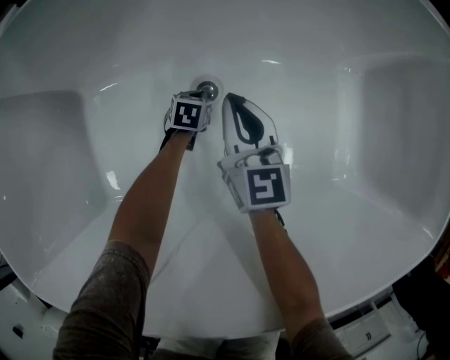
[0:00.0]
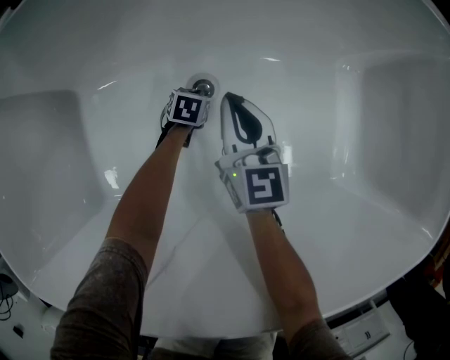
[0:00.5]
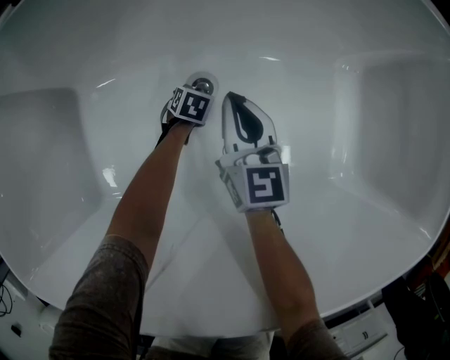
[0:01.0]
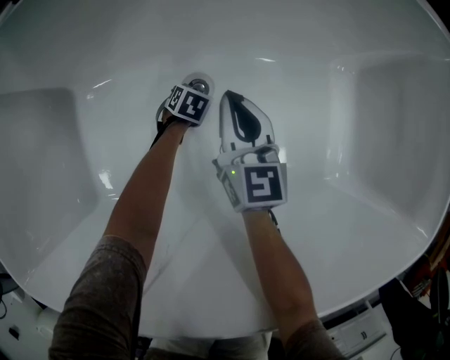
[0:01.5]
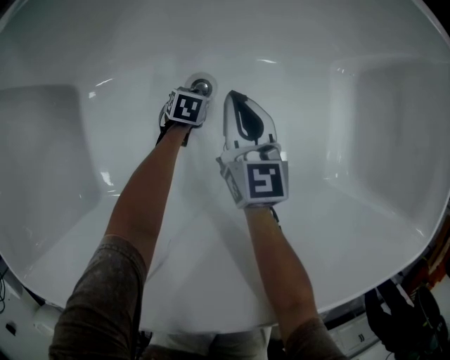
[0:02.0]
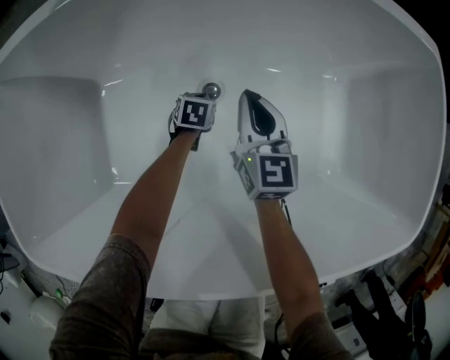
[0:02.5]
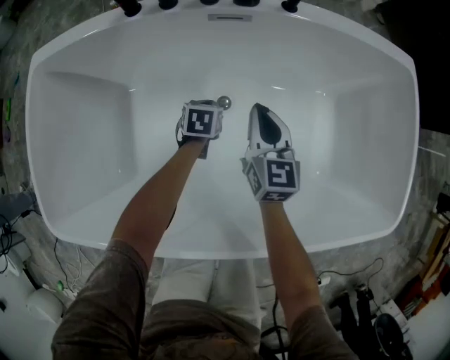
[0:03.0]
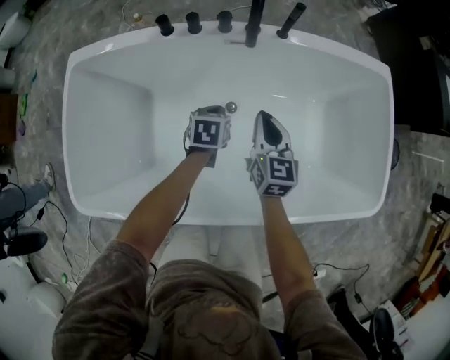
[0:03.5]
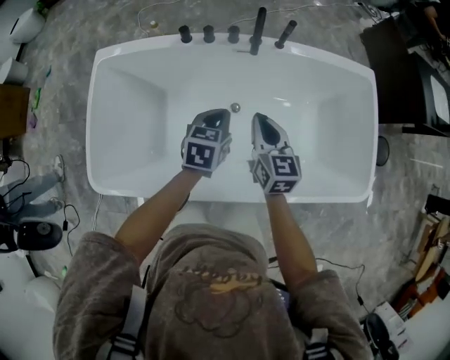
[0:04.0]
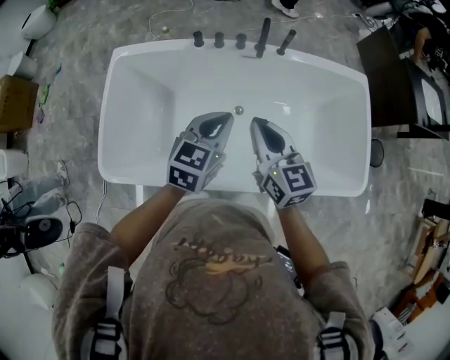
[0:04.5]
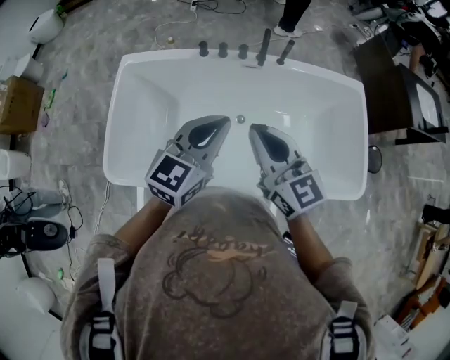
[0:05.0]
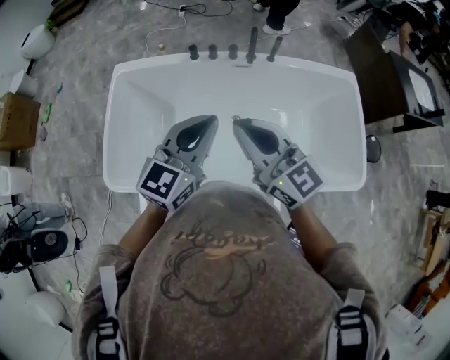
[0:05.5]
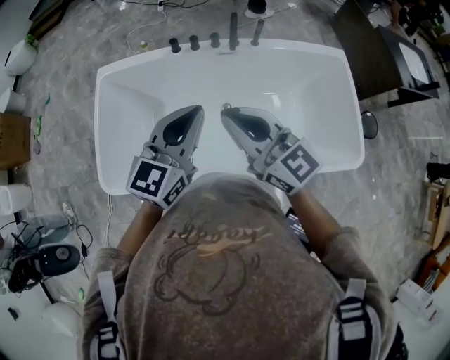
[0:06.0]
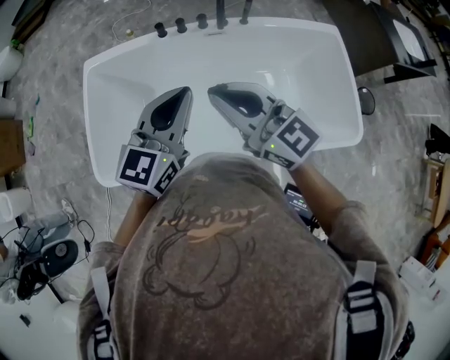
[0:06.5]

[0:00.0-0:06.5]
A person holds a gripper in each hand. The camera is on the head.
0:00.0 to 0:02.0: The grippers make only small movements.
0:02.0 to 0:04.5: The grippers both shift upward by about 70 cm. The left gripper tips its fingers upward by approximately 40 degrees.
0:04.5 to 0:06.5: Both grippers travel together upward, roughly 10 cm. The right gripper rotates some 30 degrees.

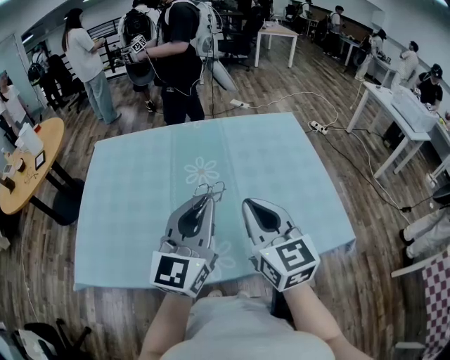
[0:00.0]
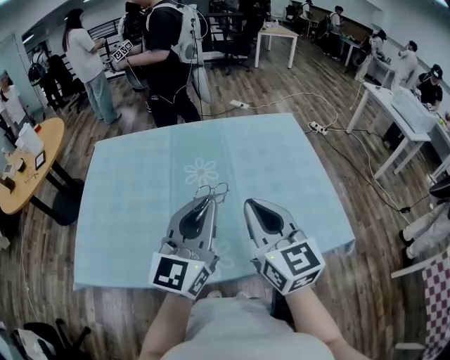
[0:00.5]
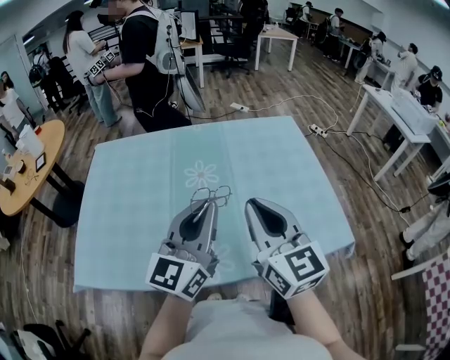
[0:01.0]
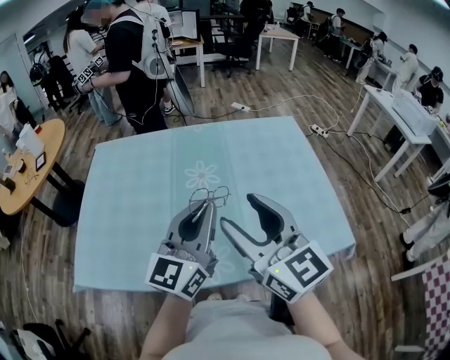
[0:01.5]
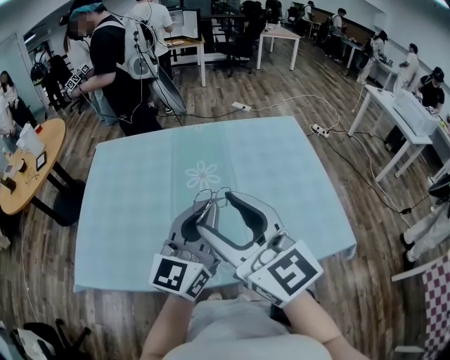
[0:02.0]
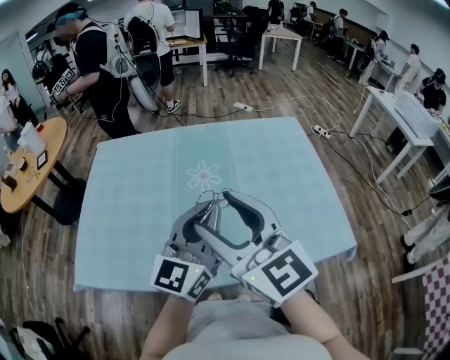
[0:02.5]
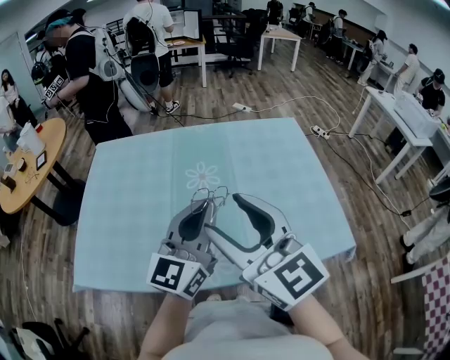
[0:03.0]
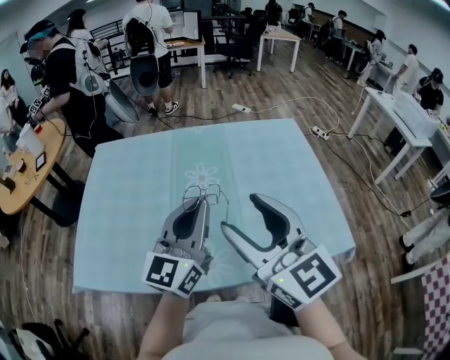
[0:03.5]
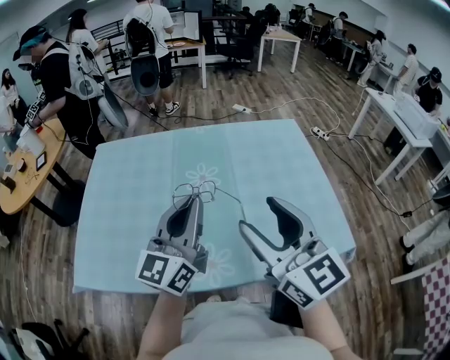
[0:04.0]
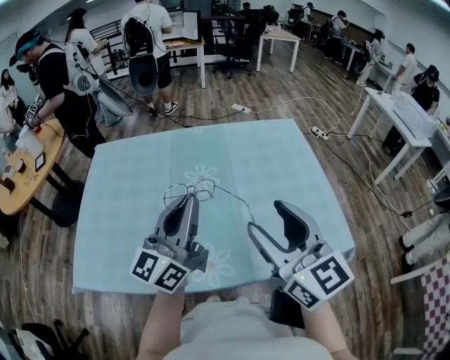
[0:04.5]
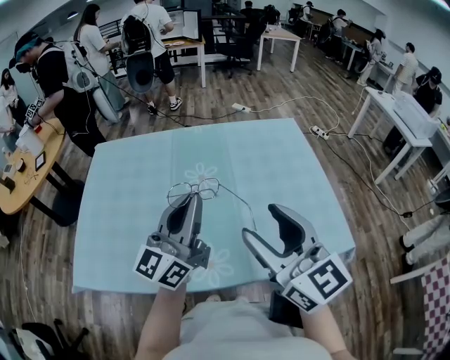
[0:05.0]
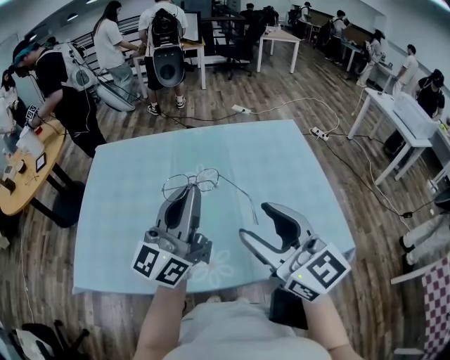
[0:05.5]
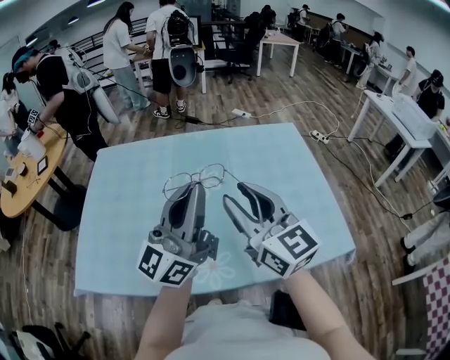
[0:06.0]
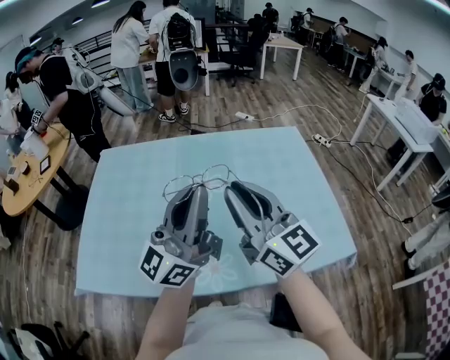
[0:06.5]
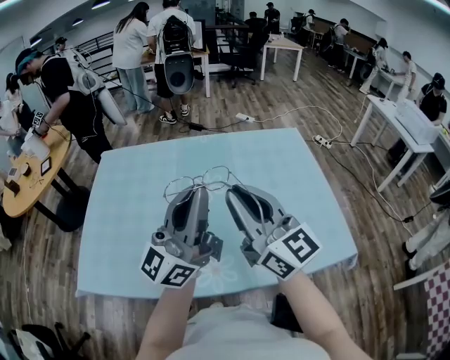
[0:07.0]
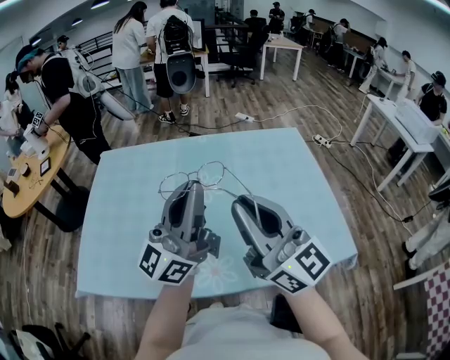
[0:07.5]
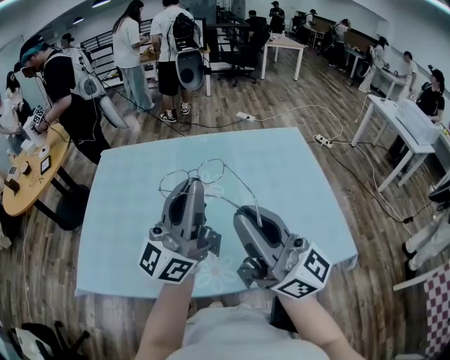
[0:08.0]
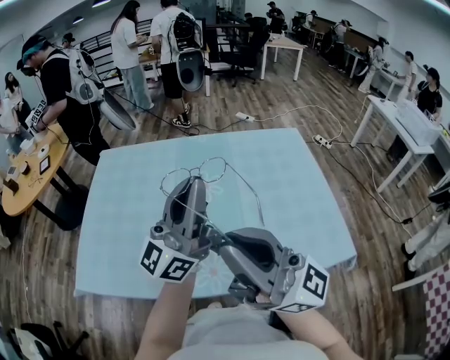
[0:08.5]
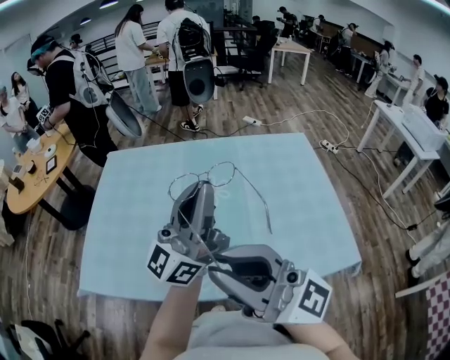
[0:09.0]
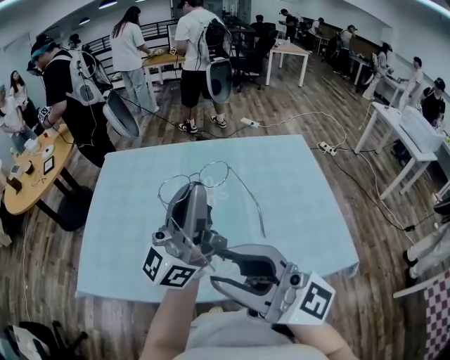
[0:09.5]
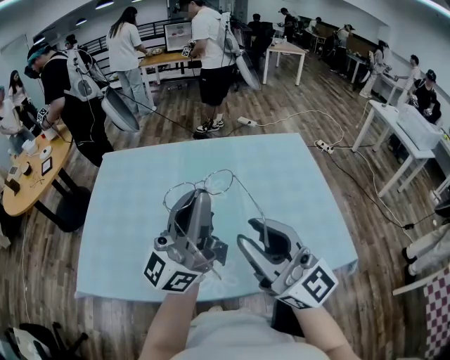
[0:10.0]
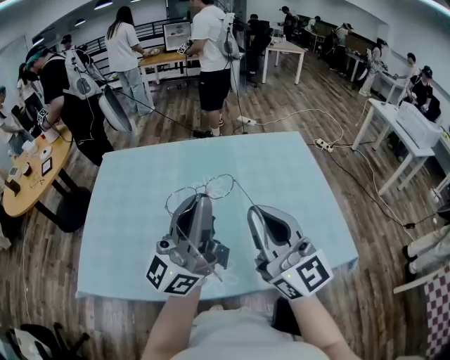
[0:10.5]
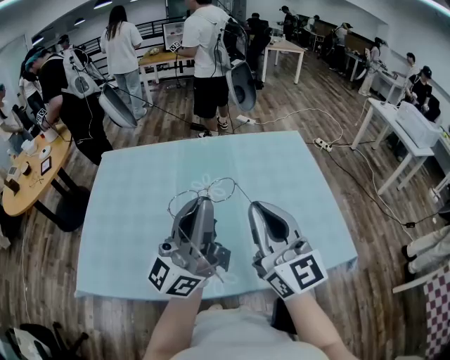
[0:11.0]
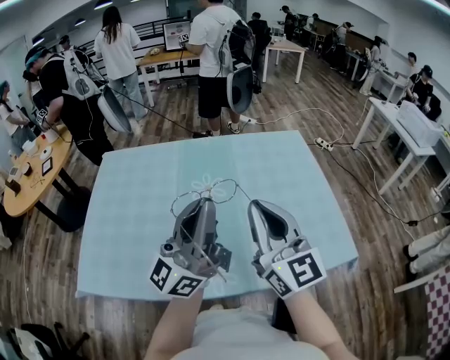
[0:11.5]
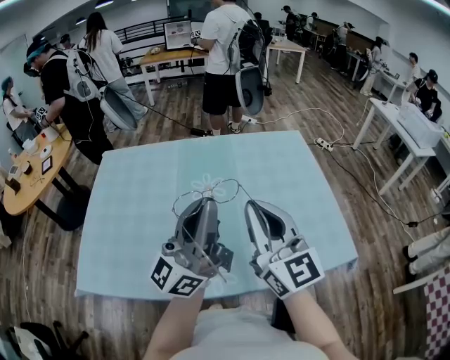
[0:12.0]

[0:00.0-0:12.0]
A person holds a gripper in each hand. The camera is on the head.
0:00.0 to 0:02.0: The right gripper moves upward and to the left, roughly 10 cm, swivels approximately 20 degrees, and opens up.
0:02.0 to 0:04.0: The right gripper heads to the right, covering about 10 cm.
0:04.0 to 0:06.0: The left gripper shifts approximately 5 cm upward, and turns by some 20 degrees. Meanwhile the right gripper travels forward by some 5 cm, and closes up.
0:06.0 to 0:08.0: The right gripper goes roughly 10 cm backward and upward, changes its angle by about 30 degrees, and closes its fingers.
0:08.0 to 0:10.0: The right gripper rotates approximately 20 degrees.
0:10.0 to 0:12.0: The right gripper is displaced forward by about 5 cm, rotates about 20 degrees, and closes.

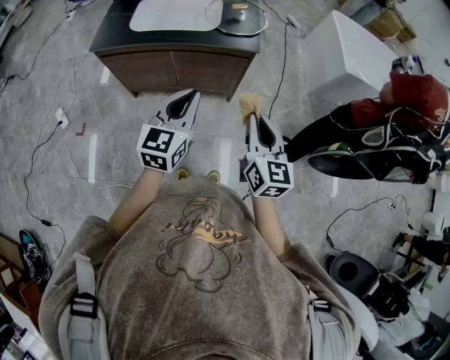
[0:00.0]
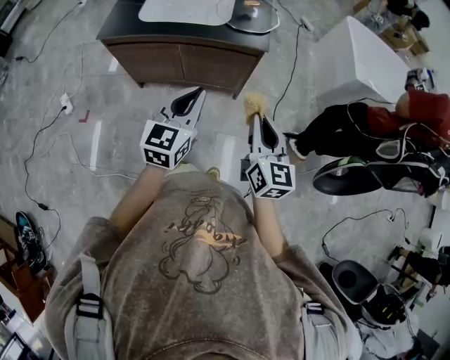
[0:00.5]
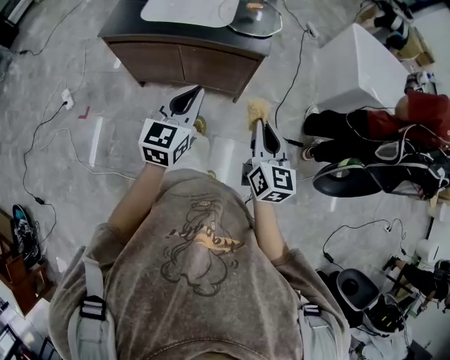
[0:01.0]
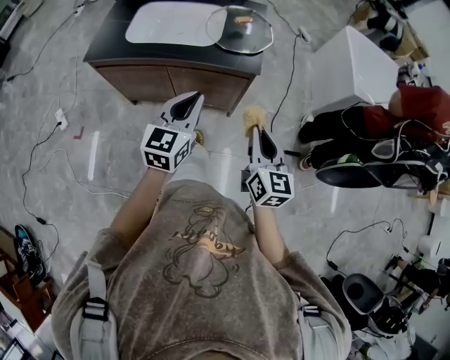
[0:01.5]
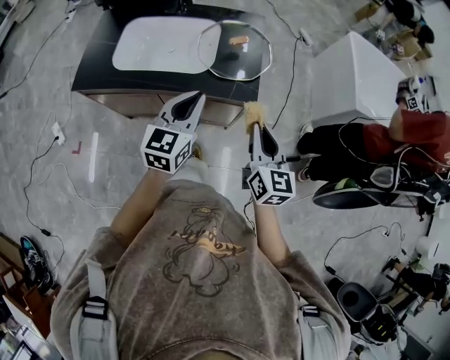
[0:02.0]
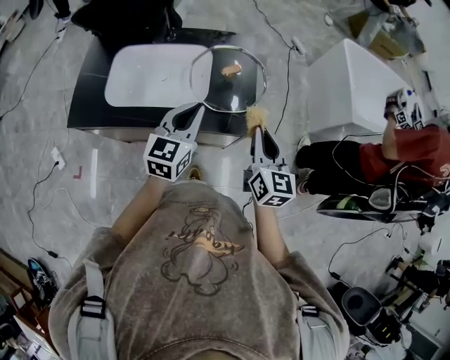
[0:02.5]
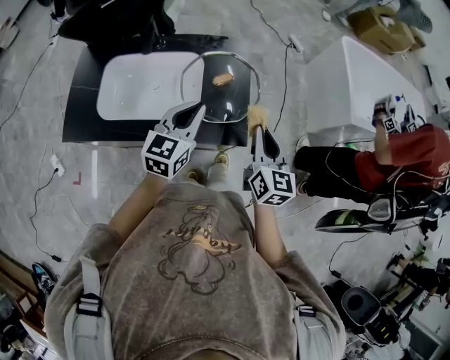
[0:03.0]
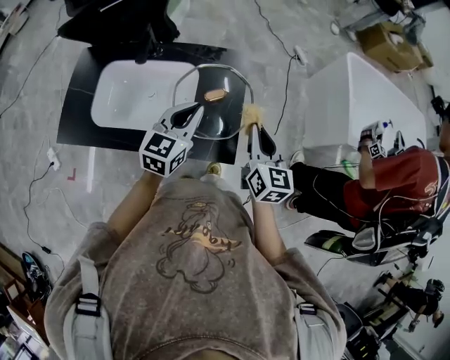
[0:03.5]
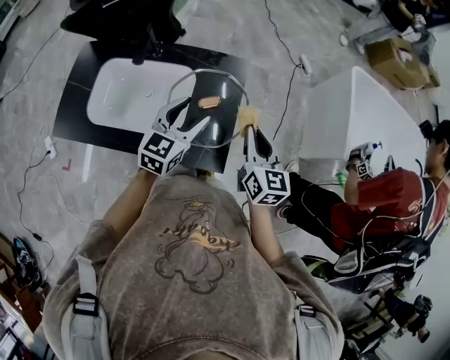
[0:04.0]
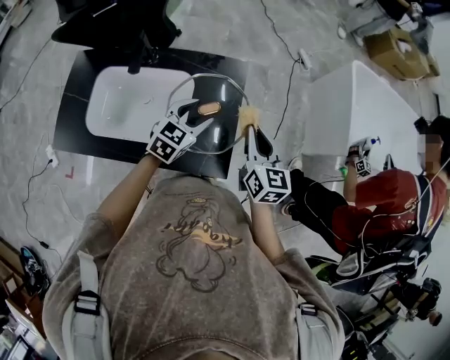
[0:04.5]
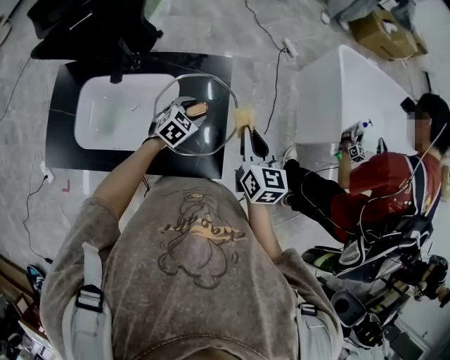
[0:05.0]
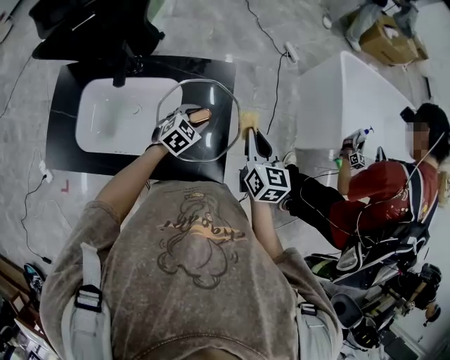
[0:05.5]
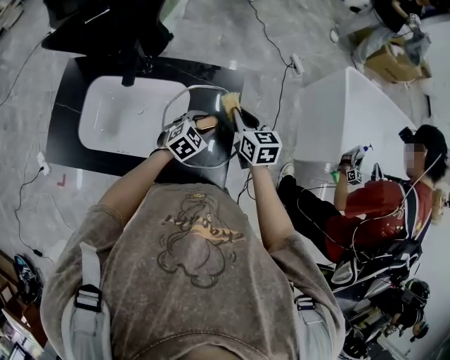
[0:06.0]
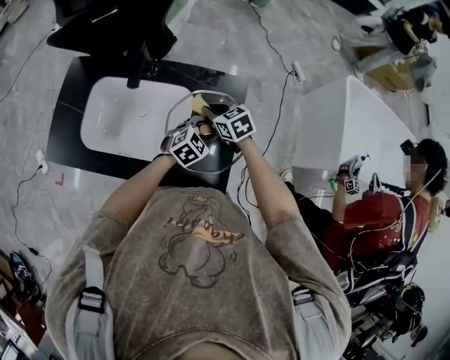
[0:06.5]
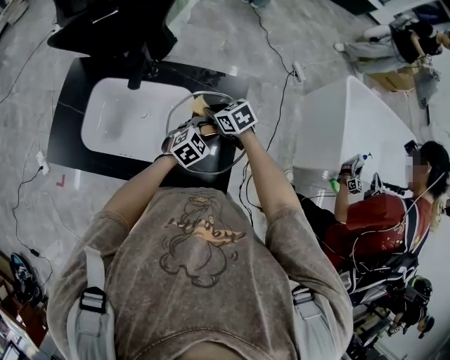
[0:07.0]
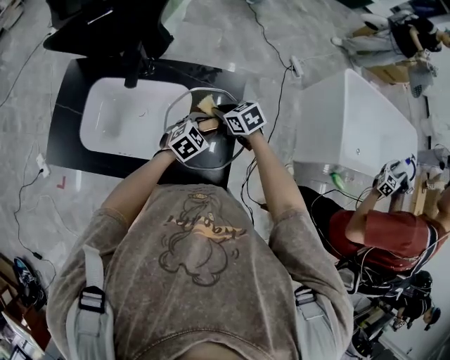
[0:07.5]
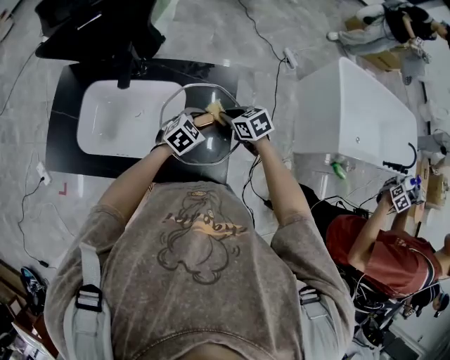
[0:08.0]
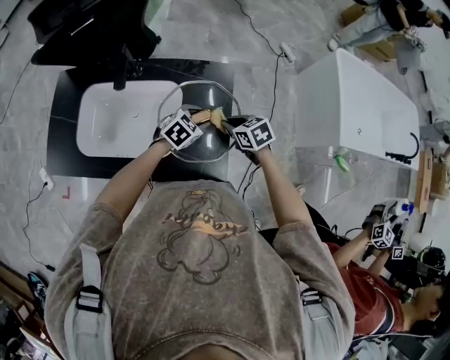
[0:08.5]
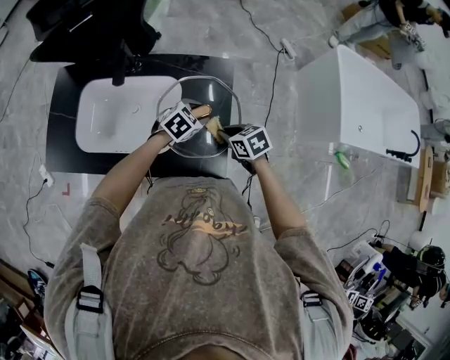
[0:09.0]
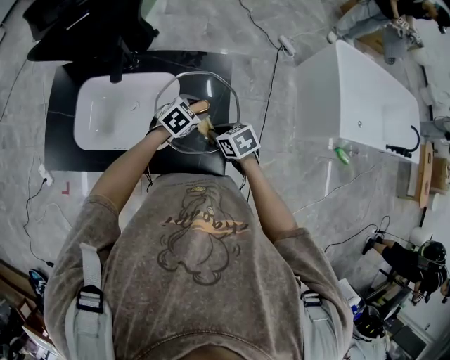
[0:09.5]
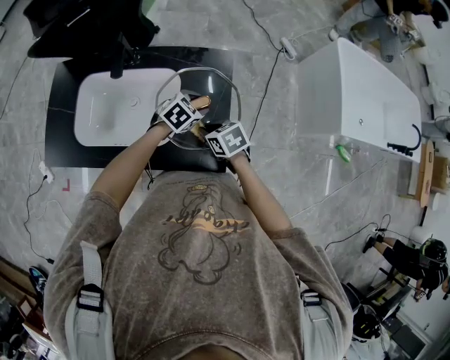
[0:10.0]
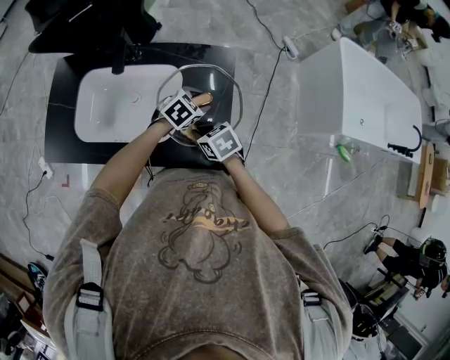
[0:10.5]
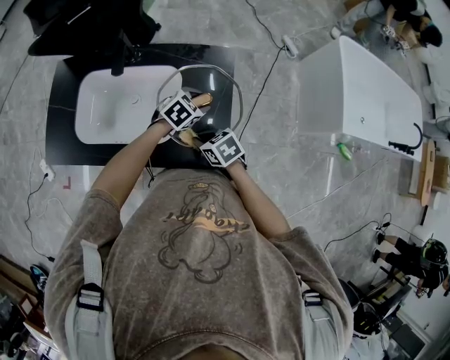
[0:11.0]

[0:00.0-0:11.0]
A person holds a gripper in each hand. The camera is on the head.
0:00.0 to 0:02.0: The grippers both shift forward by roughly 25 cm.
0:02.0 to 0:03.5: The grippers both shift forward by roughly 20 cm.
0:03.5 to 0:05.5: The right gripper heads forward, covering approximately 10 cm; the left gripper goes roughly 20 cm downward and forward, rotates about 40 degrees, and opens its fingers.
0:05.5 to 0:07.5: The right gripper ends up about 20 cm from where it was, and swivels approximately 60 degrees.
0:07.5 to 0:09.0: The right gripper heads backward and to the right, covering some 15 cm.
0:09.0 to 0:11.0: The right gripper moves approximately 10 cm.
